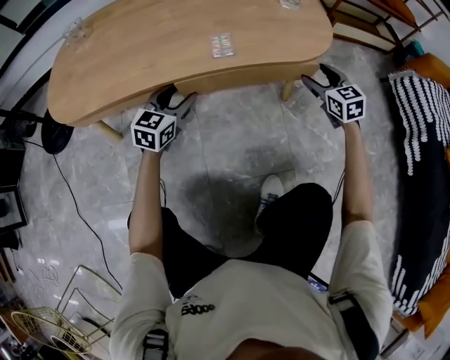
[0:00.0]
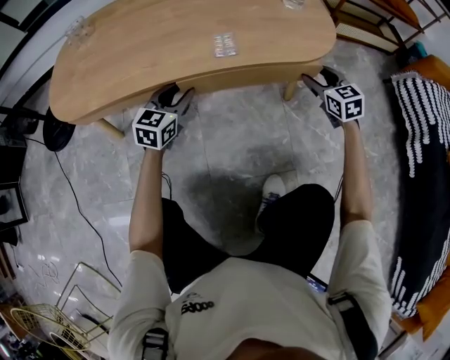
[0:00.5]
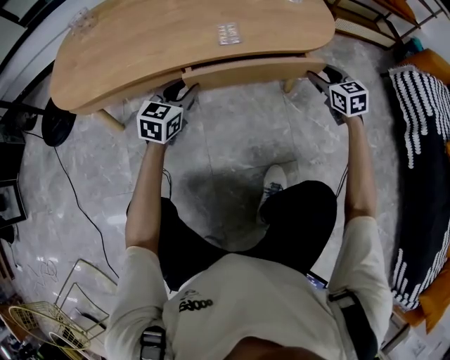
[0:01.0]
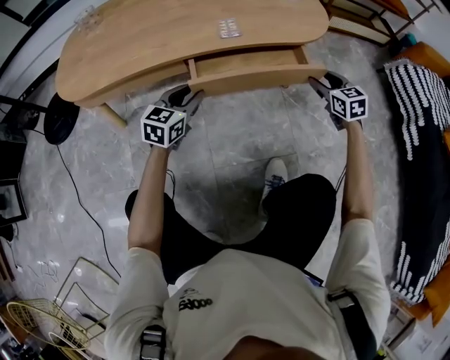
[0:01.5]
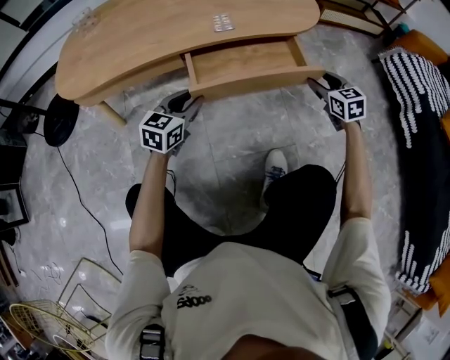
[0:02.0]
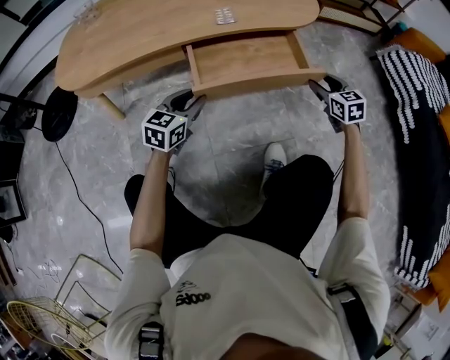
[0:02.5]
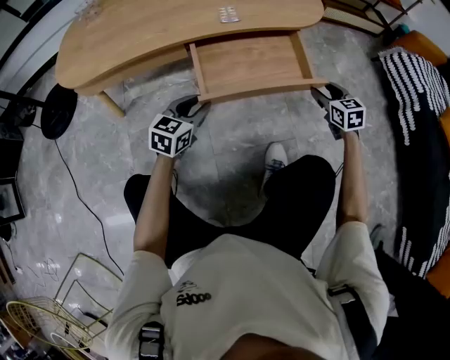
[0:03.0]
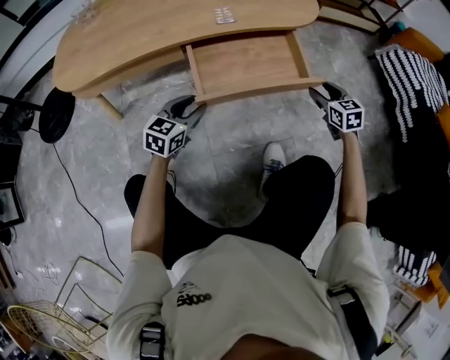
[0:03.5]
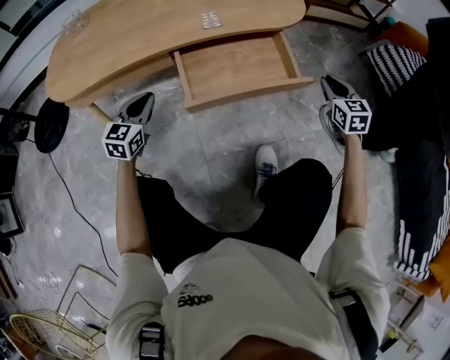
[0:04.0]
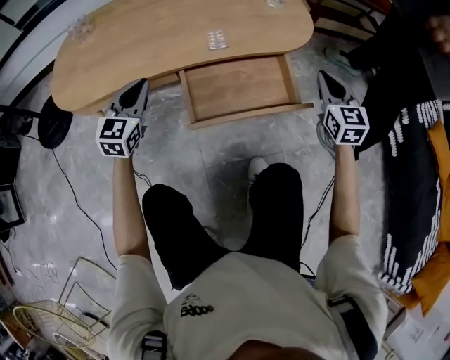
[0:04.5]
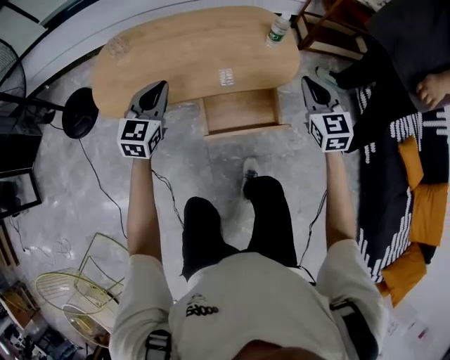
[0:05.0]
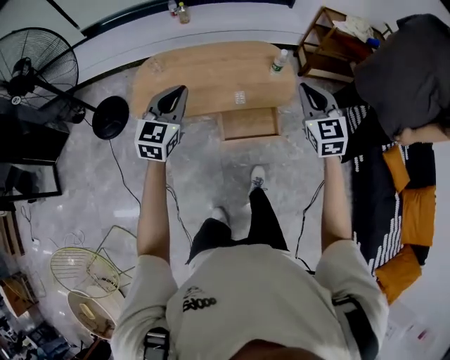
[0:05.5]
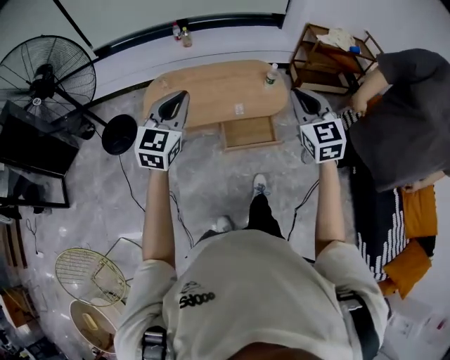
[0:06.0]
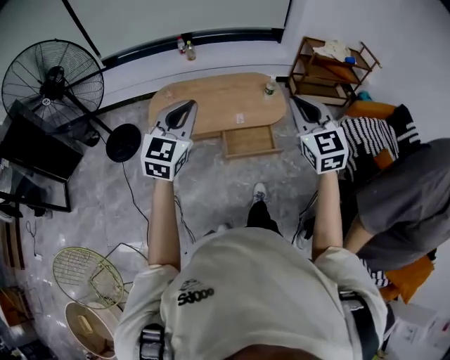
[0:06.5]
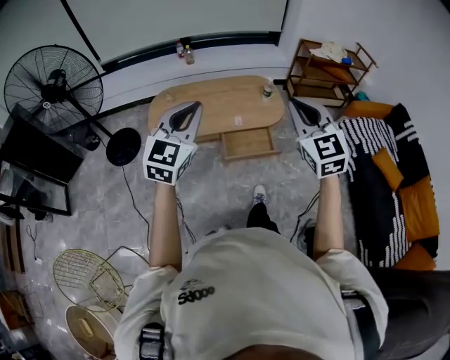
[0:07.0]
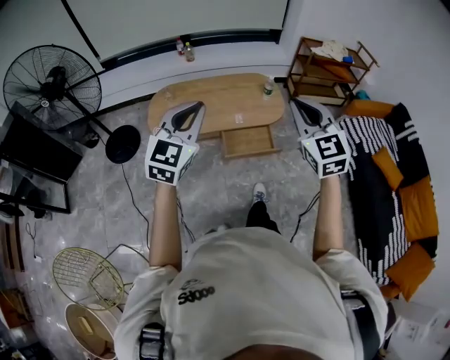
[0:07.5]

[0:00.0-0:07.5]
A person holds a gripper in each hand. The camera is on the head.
0:00.0 to 0:02.0: Both grippers travel together backward, some 10 cm. The left gripper closes.
0:02.0 to 0:04.0: The right gripper shifts about 5 cm to the right, and closes, while the left gripper goes about 10 cm to the left, and closes.
0:04.0 to 0:05.5: Both grippers move upward, approximately 60 cm. The right gripper swivels some 20 degrees.
0:05.5 to 0:07.5: Both grippers move backward and upward, roughly 25 cm.

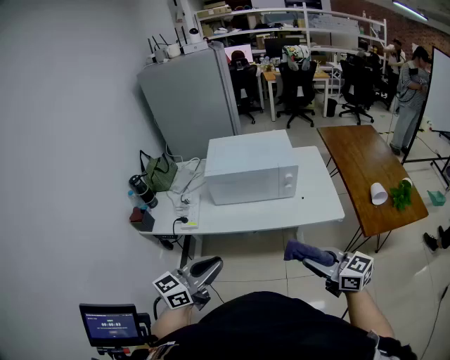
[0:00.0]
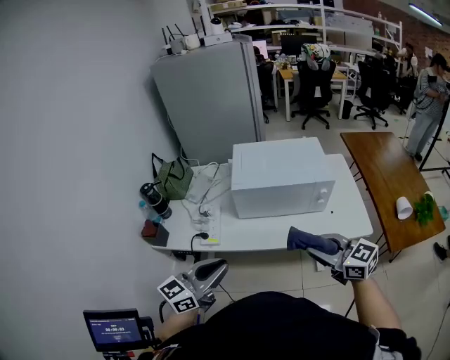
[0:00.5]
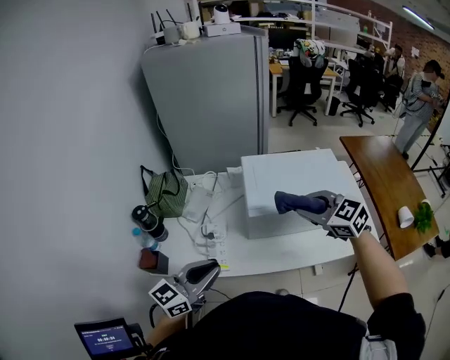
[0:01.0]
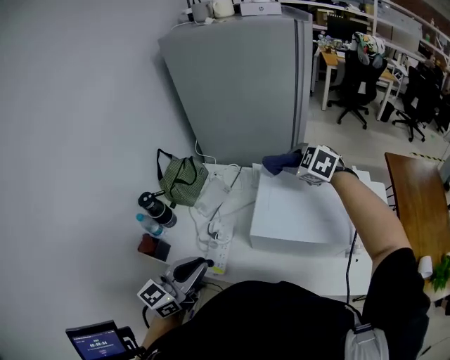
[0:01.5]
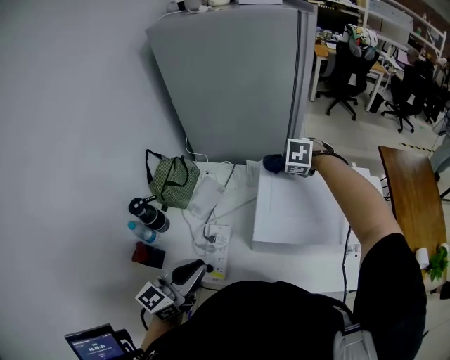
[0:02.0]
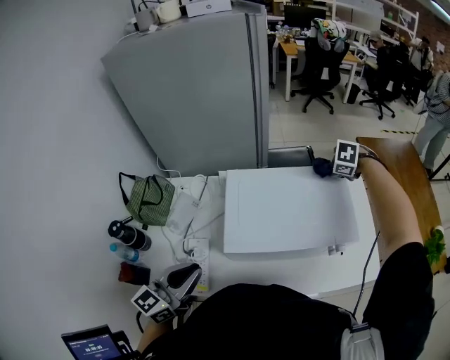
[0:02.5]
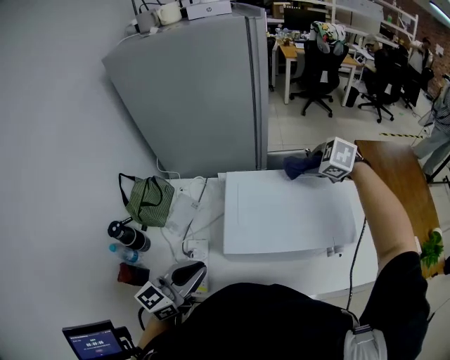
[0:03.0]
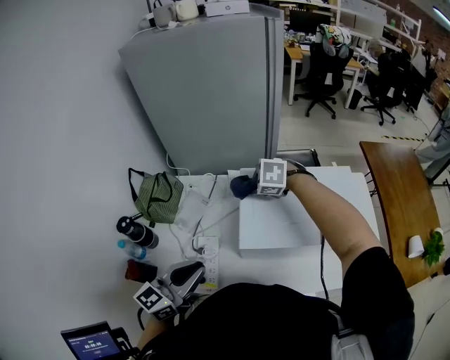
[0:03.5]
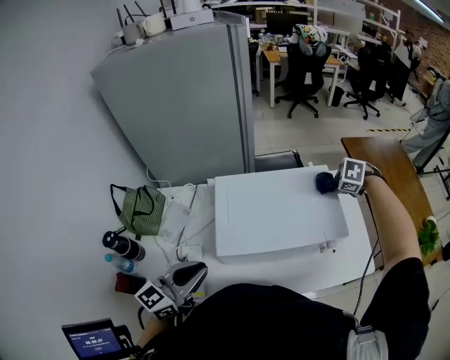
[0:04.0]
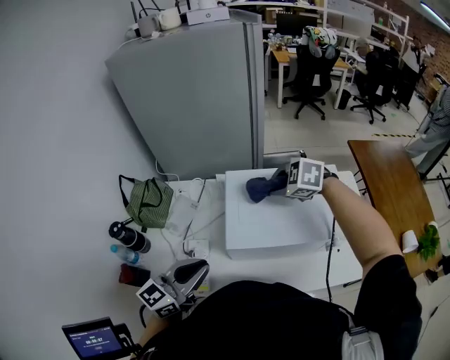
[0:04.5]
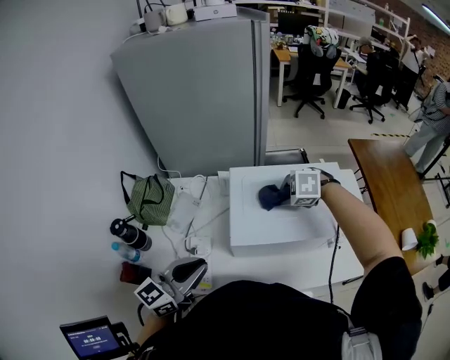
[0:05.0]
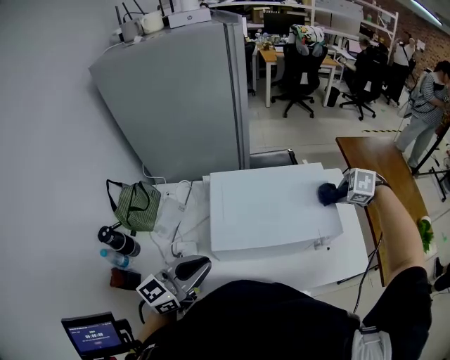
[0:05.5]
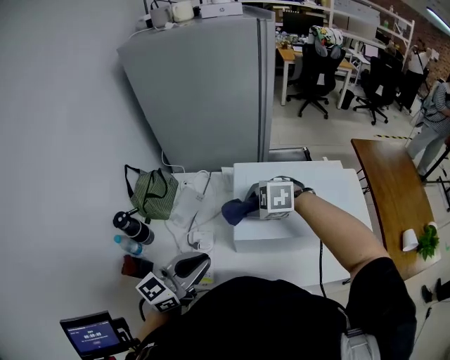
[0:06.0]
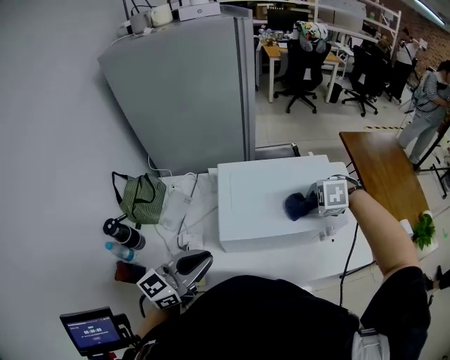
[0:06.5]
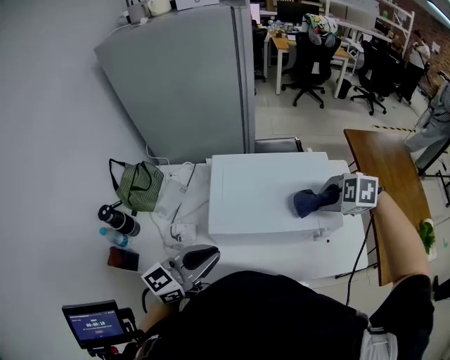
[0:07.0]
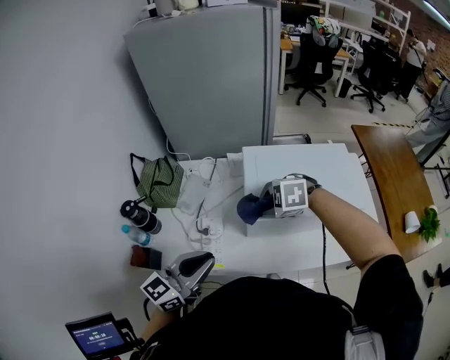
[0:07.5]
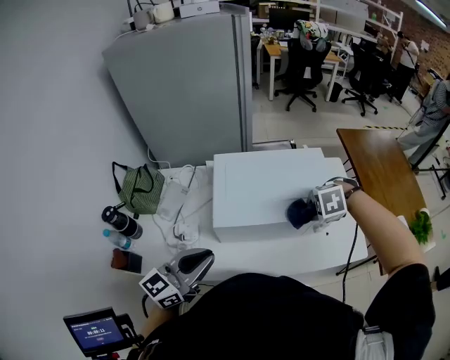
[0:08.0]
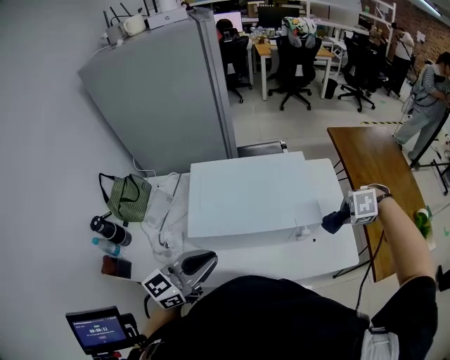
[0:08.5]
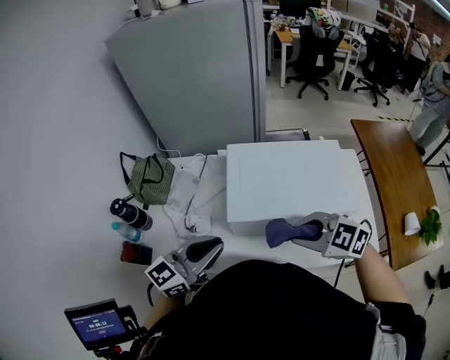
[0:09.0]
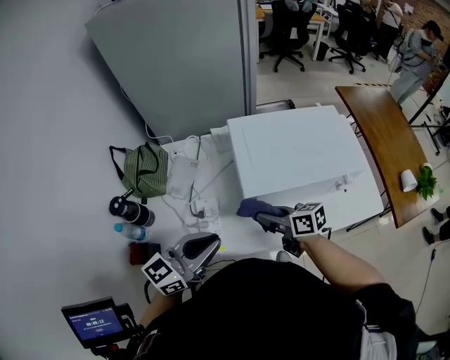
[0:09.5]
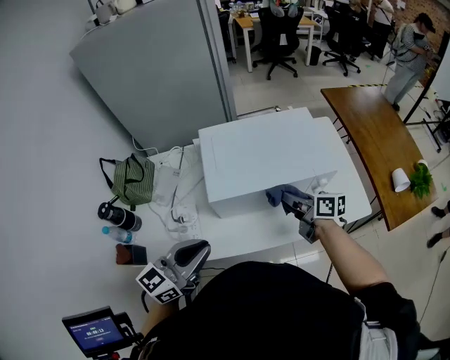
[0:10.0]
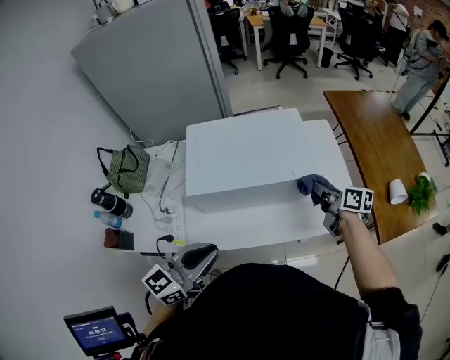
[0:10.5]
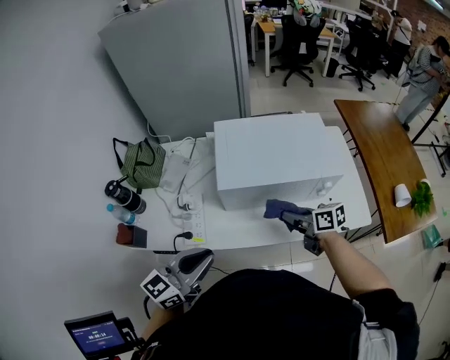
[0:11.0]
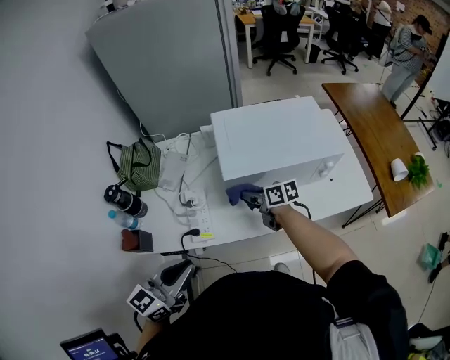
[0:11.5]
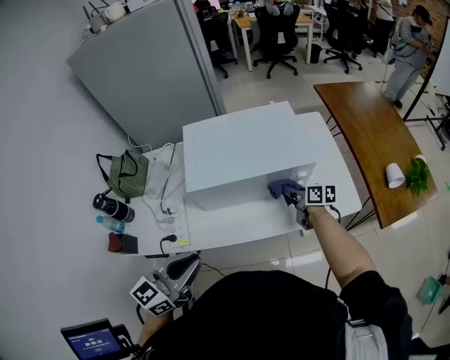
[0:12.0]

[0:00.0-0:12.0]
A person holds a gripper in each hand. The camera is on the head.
0:00.0 to 0:02.0: Both grippers are carried forward, about 60 cm. The right gripper points its fingers some 70 degrees further downward.
0:02.0 to 0:04.0: The right gripper shifts by about 35 cm, and turns by approximately 20 degrees, while the left gripper moves approximately 10 cm.
0:04.0 to 0:06.0: The right gripper ends up approximately 40 cm from where it was, and turns by about 40 degrees.
0:06.0 to 0:08.0: The left gripper shifts by some 5 cm, while the right gripper ends up approximately 30 cm from where it was, and turns by about 20 degrees.
0:08.0 to 0:10.0: The right gripper travels upward and back again, about 5 cm each way, and angles its fingers upward, by some 70 degrees.
0:10.0 to 0:12.0: The left gripper moves left and right over roughly 20 cm, changing direction 2 times. Meanwhile the right gripper goes left and right, about 35 cm each way, reversing 2 times.

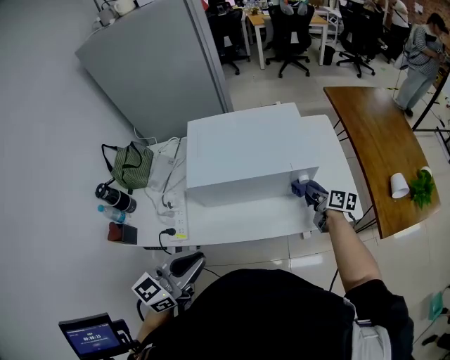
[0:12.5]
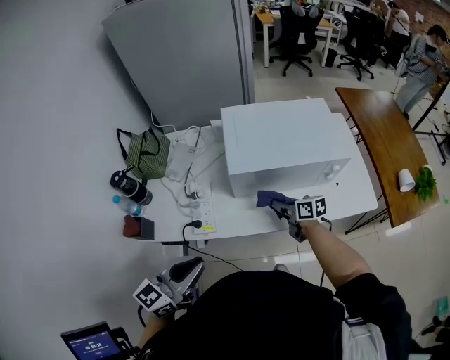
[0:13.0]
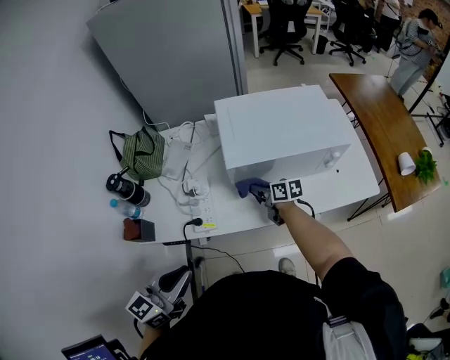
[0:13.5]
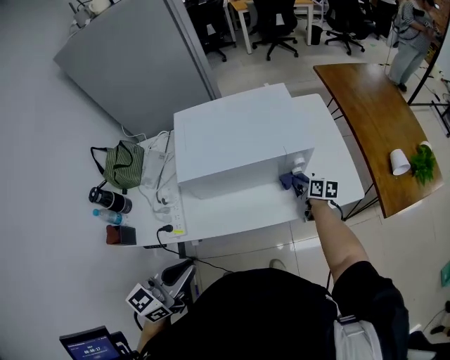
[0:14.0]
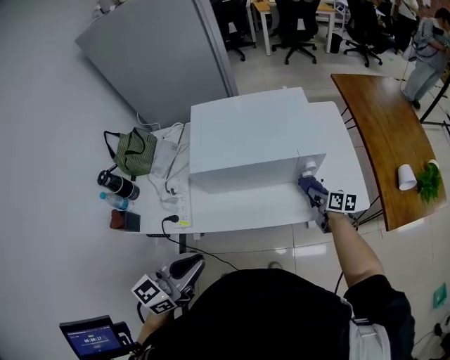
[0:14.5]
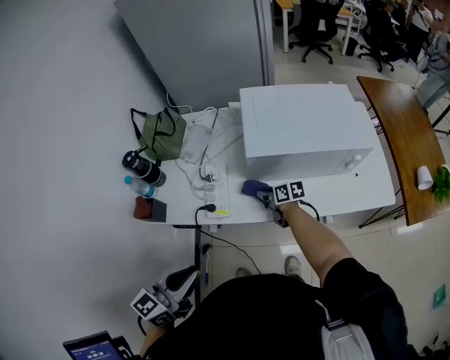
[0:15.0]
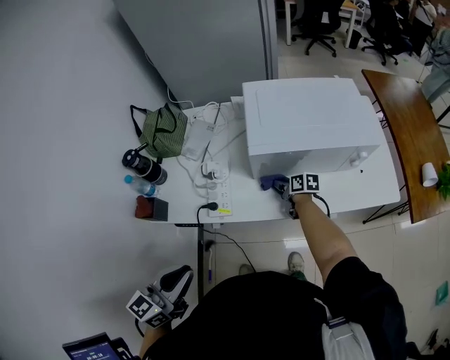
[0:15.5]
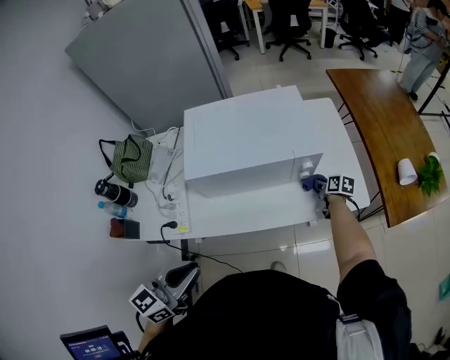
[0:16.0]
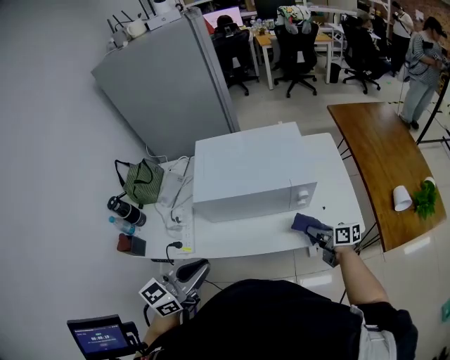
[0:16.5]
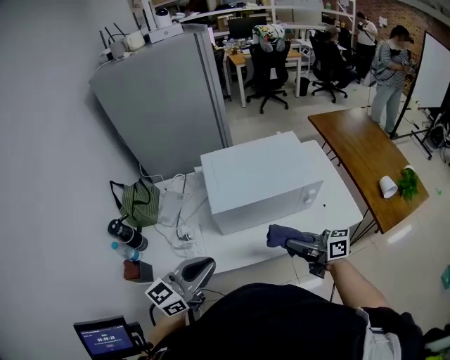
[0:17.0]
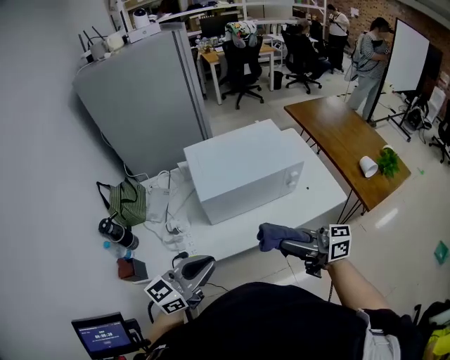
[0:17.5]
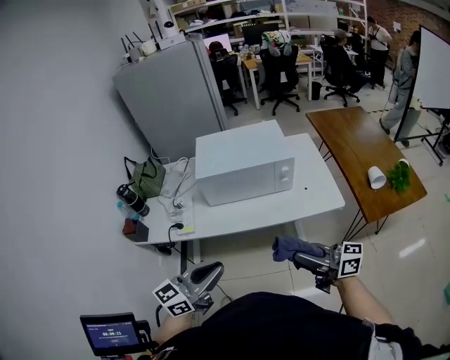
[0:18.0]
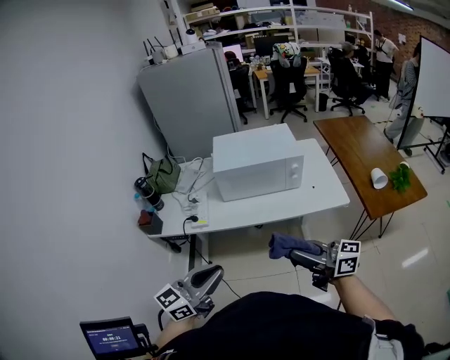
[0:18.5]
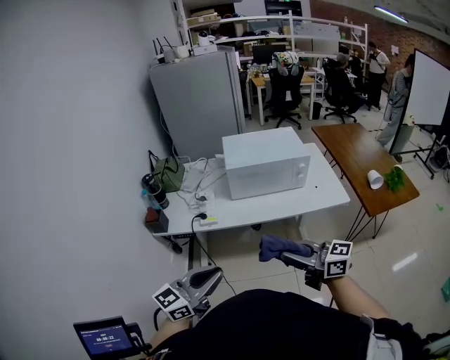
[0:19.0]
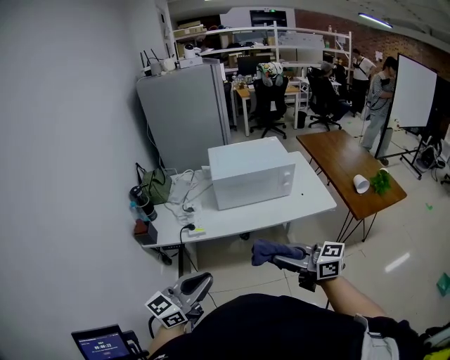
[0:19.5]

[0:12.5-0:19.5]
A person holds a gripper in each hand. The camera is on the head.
0:12.5 to 0:14.5: The left gripper goes to the left and returns, roughly 20 cm each way; the right gripper moves downward, approximately 5 cm, and goes to the left and returns, roughly 35 cm each way.
0:14.5 to 0:16.0: The right gripper is displaced downward by about 5 cm, and goes to the left and returns, approximately 40 cm each way. Meanwhile the left gripper travels to the left and back again, roughly 20 cm each way.
0:16.0 to 0:17.5: The left gripper goes roughly 5 cm to the left, and swivels approximately 20 degrees. Meanwhile the right gripper is displaced upward, backward and to the left by about 50 cm, and tips its fingers upward by approximately 50 degrees.
0:17.5 to 0:19.5: The two grippers go approximately 25 cm backward.
